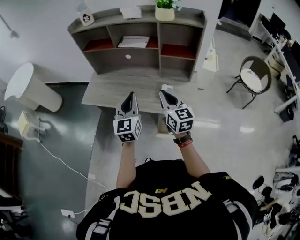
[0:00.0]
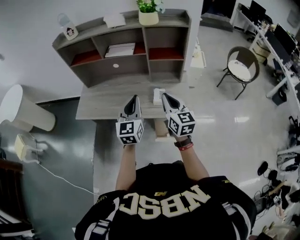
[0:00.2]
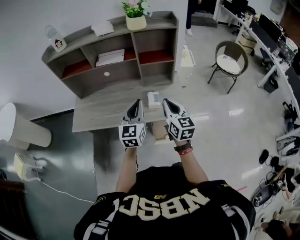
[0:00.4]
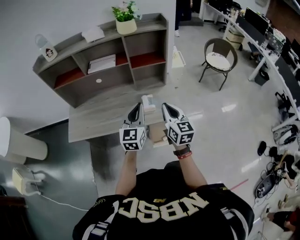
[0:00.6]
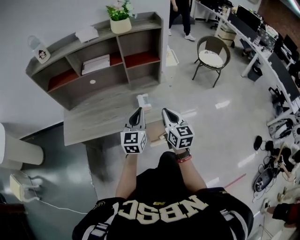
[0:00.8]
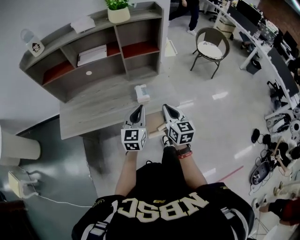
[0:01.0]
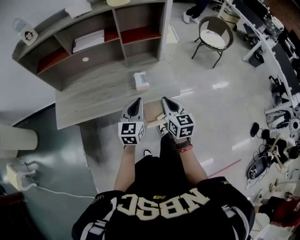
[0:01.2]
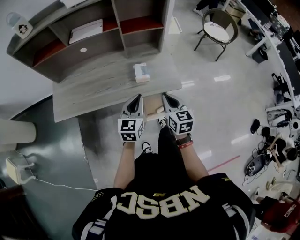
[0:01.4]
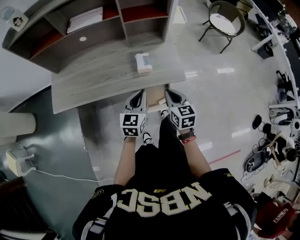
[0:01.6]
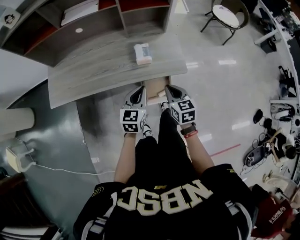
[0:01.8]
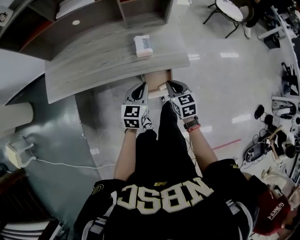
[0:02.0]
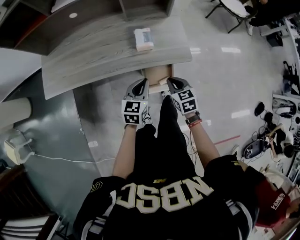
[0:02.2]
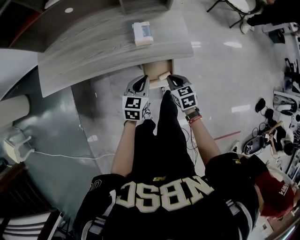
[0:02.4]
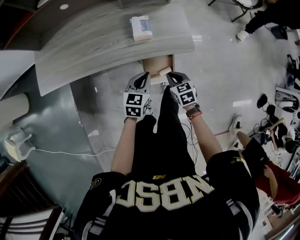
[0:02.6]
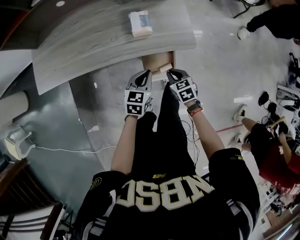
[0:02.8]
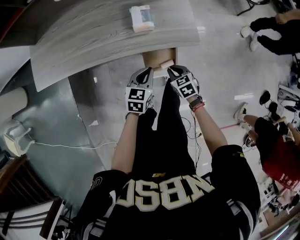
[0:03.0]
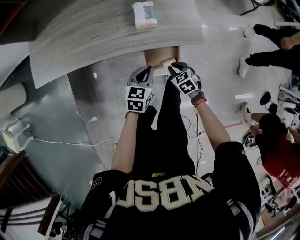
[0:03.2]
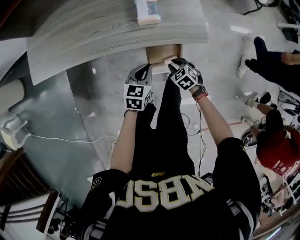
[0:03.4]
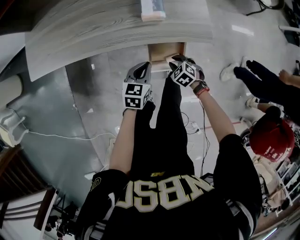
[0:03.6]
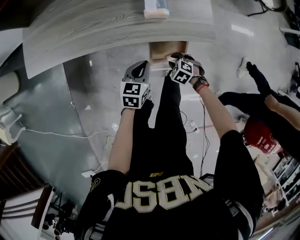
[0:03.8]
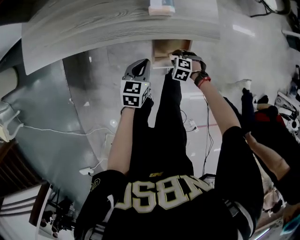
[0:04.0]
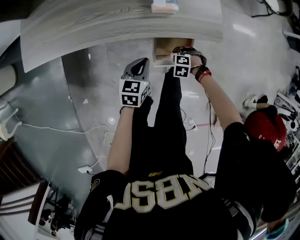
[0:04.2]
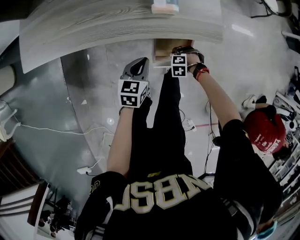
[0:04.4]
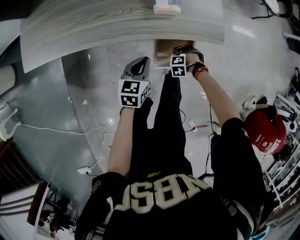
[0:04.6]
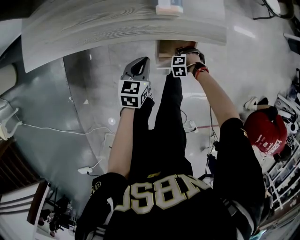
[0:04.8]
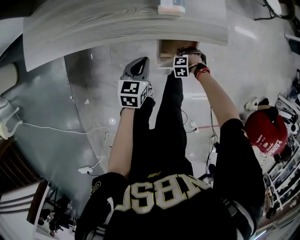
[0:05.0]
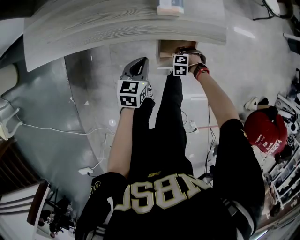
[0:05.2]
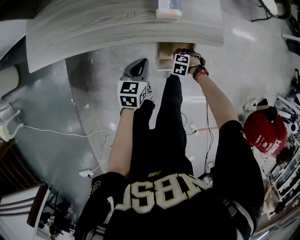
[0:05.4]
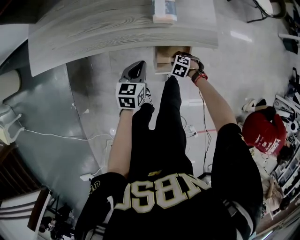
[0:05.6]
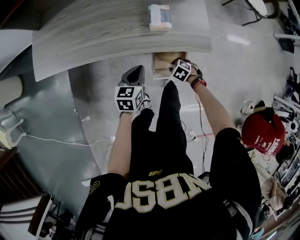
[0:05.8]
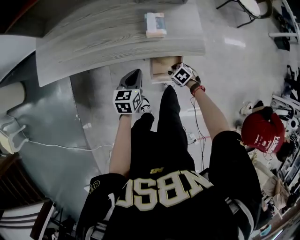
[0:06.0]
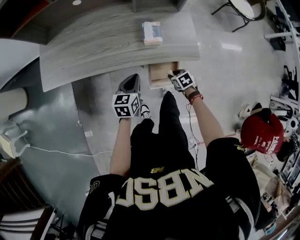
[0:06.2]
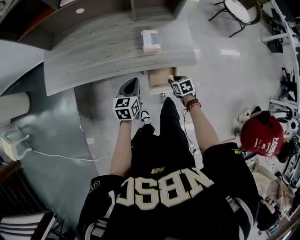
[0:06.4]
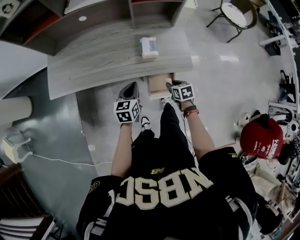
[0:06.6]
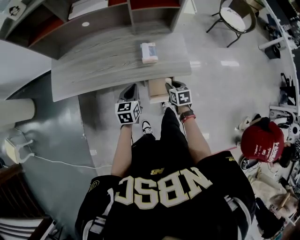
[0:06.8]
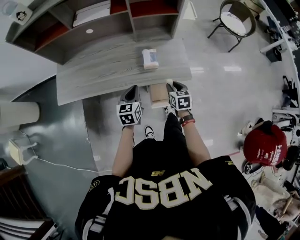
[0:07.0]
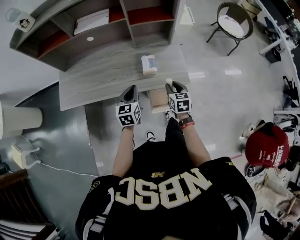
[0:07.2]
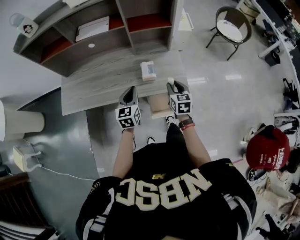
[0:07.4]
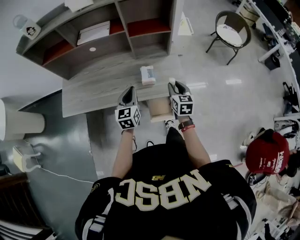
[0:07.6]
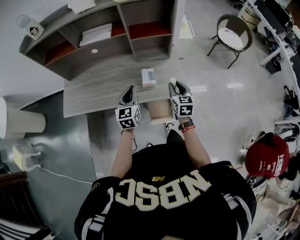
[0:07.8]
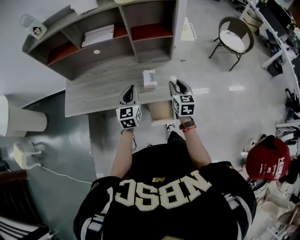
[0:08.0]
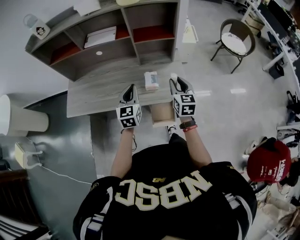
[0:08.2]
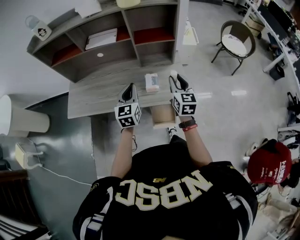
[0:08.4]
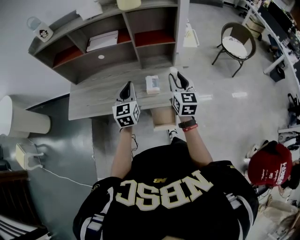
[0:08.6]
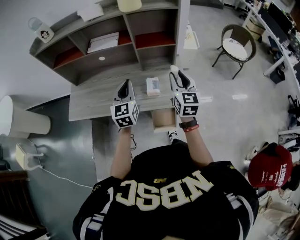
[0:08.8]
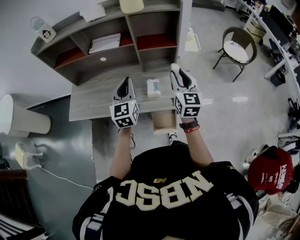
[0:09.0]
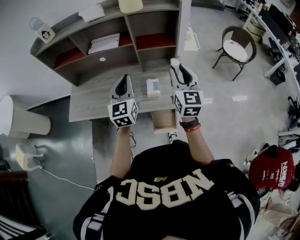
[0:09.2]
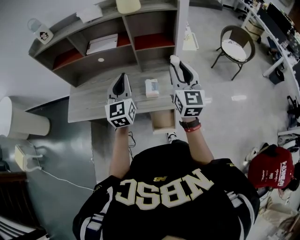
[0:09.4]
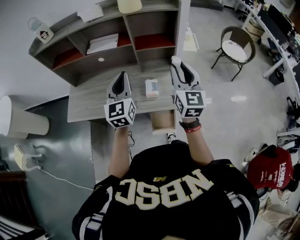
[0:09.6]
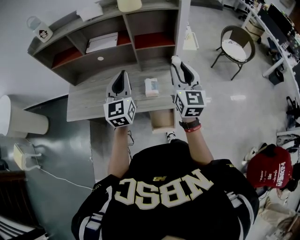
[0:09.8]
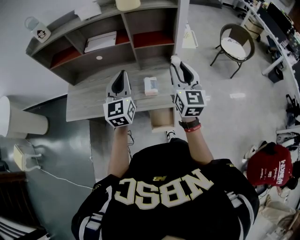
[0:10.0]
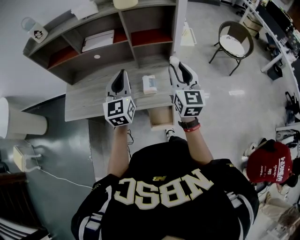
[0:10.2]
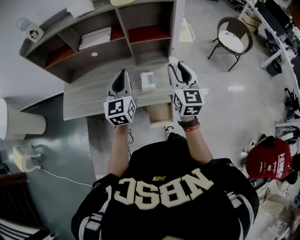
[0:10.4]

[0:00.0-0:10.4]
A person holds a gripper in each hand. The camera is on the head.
0:00.0 to 0:01.4: Both grippers move downward, roughly 15 cm. The left gripper turns by approximately 40 degrees. Meanwhile the right gripper swivels approximately 30 degrees.
0:01.4 to 0:03.0: Both grippers move downward, roughly 25 cm. The right gripper tips its fingers downward by approximately 30 degrees. The left gripper swivels about 20 degrees.
0:03.0 to 0:04.4: The right gripper goes roughly 15 cm downward, rotates around the line of its fingers by about 60 degrees, counterclockwise from behind, and opens; the left gripper moves approximately 10 cm.
0:04.4 to 0:06.0: The grippers both shift upward by roughly 10 cm. The right gripper rolls clockwise, seen from behind, by some 50 degrees.
0:06.0 to 0:07.4: The right gripper is displaced upward by about 30 cm, and tips its fingers upward by roughly 40 degrees. The left gripper shifts some 15 cm upward, and rotates approximately 20 degrees.
0:07.4 to 0:09.0: Both grippers travel together upward, about 20 cm. The right gripper swivels roughly 30 degrees; the left gripper turns by roughly 20 degrees.
0:09.0 to 0:10.4: There are only small adjustments of the grippers.

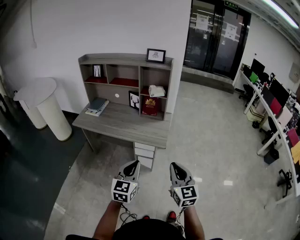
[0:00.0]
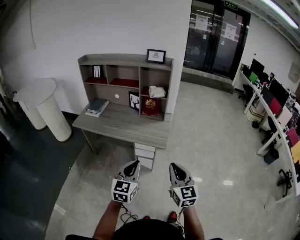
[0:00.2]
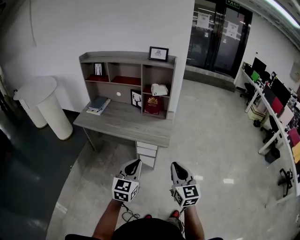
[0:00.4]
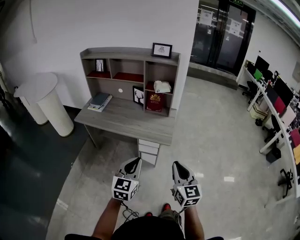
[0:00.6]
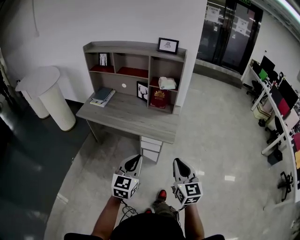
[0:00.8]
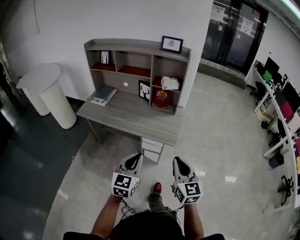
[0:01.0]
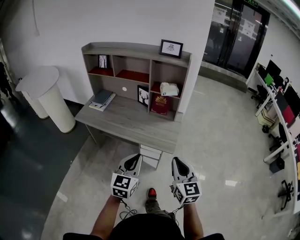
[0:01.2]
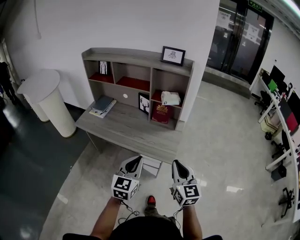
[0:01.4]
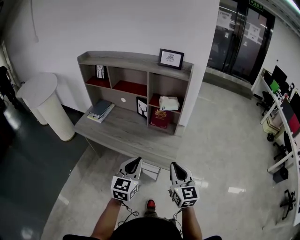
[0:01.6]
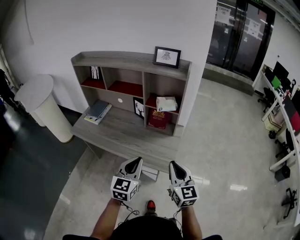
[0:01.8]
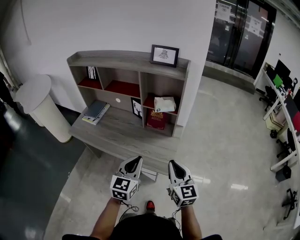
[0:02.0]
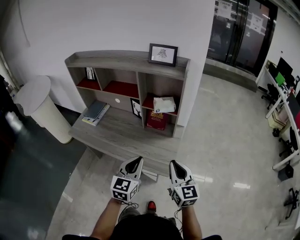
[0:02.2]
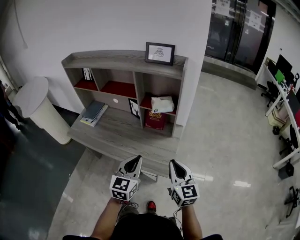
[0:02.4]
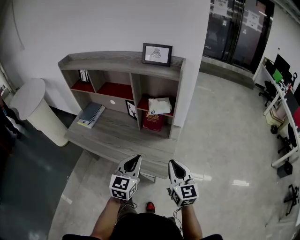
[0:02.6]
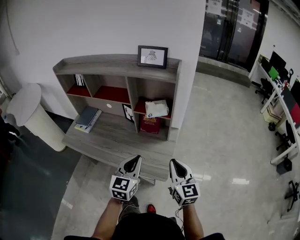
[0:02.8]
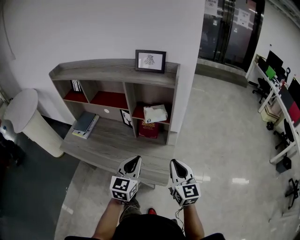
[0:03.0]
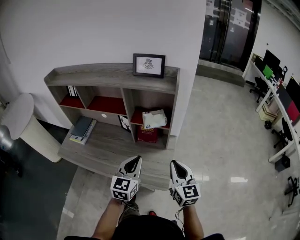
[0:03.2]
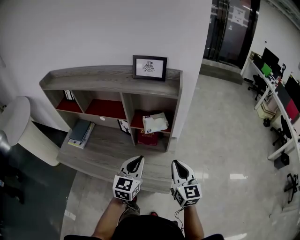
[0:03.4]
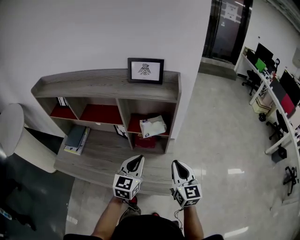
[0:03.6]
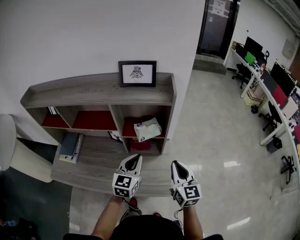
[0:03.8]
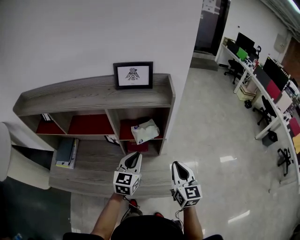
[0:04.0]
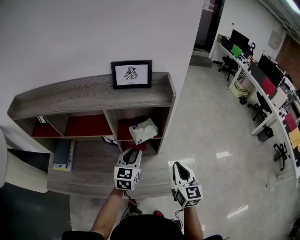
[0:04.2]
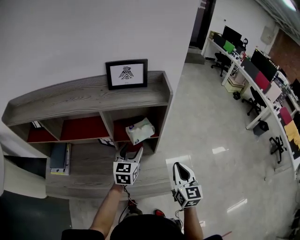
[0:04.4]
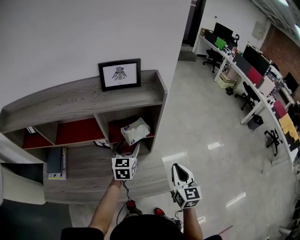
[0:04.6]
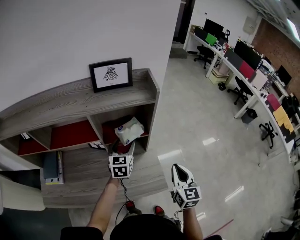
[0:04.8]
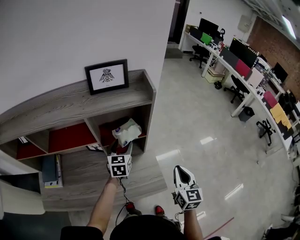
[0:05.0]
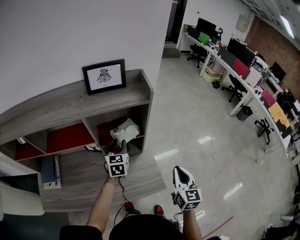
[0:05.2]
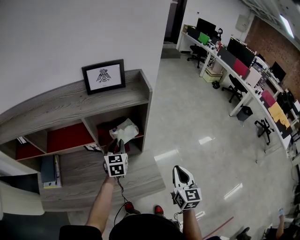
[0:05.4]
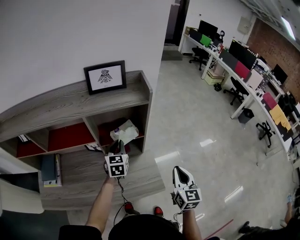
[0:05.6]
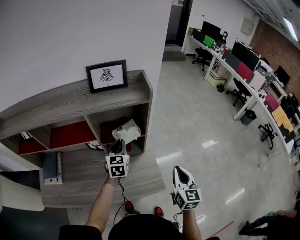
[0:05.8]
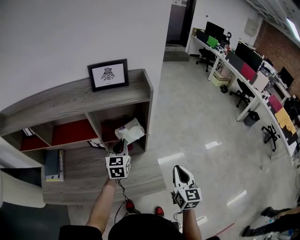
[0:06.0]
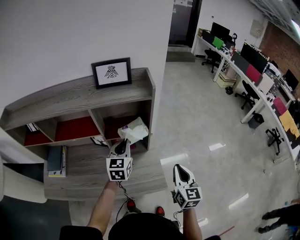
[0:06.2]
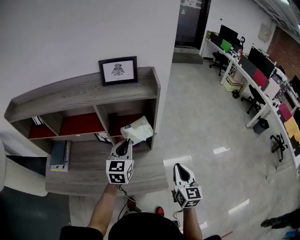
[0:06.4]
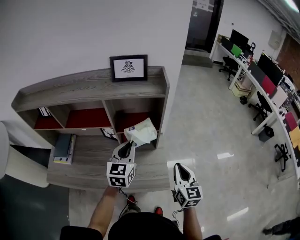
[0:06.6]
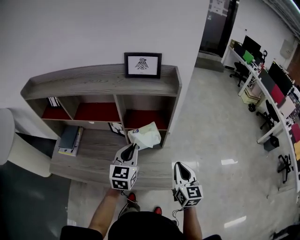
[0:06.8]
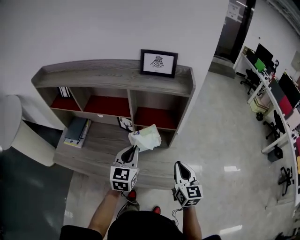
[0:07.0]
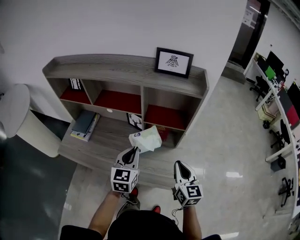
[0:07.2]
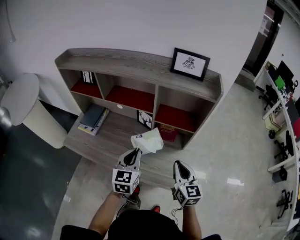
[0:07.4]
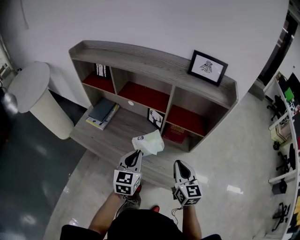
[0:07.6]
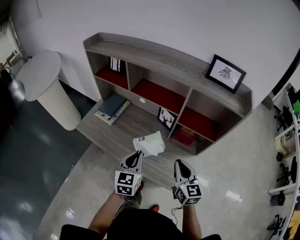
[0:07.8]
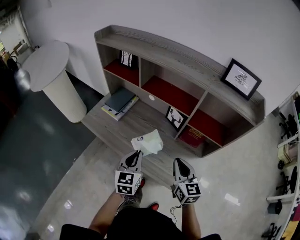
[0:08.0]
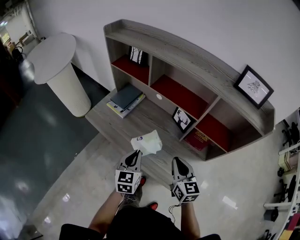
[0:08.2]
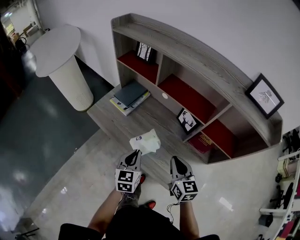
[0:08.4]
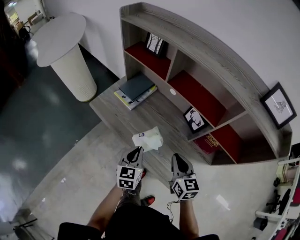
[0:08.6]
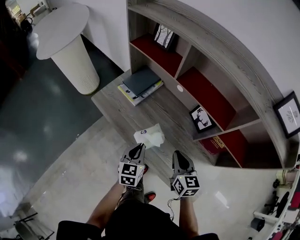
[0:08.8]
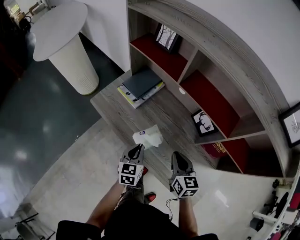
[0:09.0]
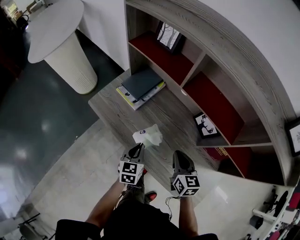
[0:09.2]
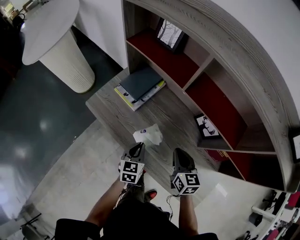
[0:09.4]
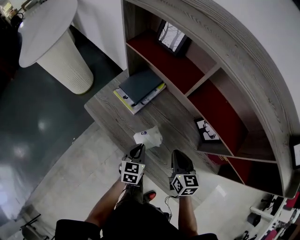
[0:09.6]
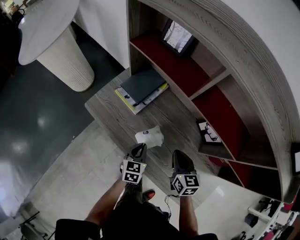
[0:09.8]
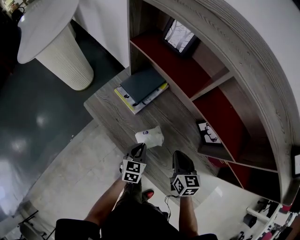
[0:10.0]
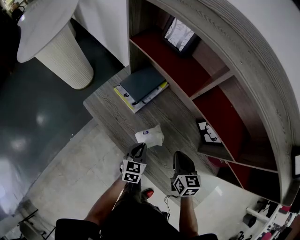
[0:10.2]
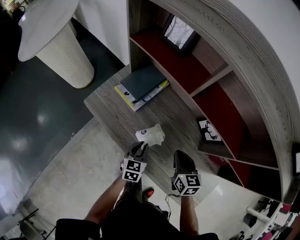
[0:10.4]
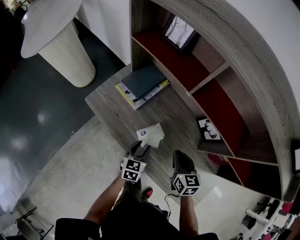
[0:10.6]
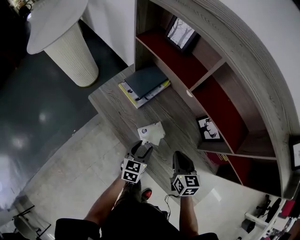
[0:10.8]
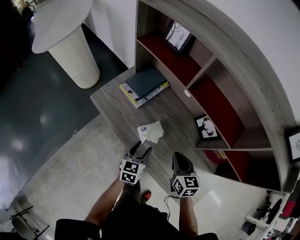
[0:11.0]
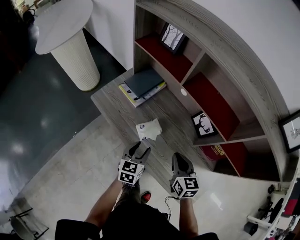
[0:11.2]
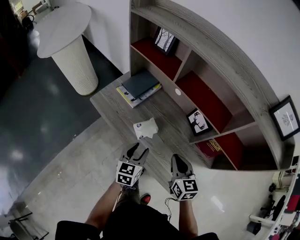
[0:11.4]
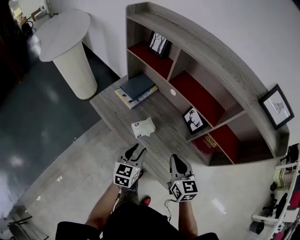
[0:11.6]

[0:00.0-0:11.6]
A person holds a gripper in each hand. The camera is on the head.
0:00.0 to 0:01.4: Both grippers travel together forward, approximately 20 cm.
0:01.4 to 0:02.8: The right gripper moves forward, approximately 15 cm; the left gripper moves forward and to the right, roughly 20 cm.
0:02.8 to 0:04.4: The left gripper shifts some 25 cm forward, and opens; the right gripper heads forward, covering about 10 cm, and turns by approximately 30 degrees.
0:04.4 to 0:05.8: The right gripper goes approximately 5 cm to the right; the left gripper closes.
0:05.8 to 0:07.2: The right gripper travels to the left by about 10 cm, and rotates about 30 degrees. Meanwhile the left gripper moves backward and to the left, roughly 20 cm.
0:07.2 to 0:08.8: The left gripper changes place by some 30 cm, and changes its angle by about 30 degrees, while the right gripper moves some 30 cm, and rotates some 30 degrees.
0:08.8 to 0:10.2: The right gripper heads forward and downward, covering about 10 cm. Meanwhile the left gripper heads downward and forward, covering approximately 15 cm.
0:10.2 to 0:11.6: The left gripper heads upward and backward, covering approximately 20 cm, and opens; the right gripper moves backward and upward, some 20 cm.

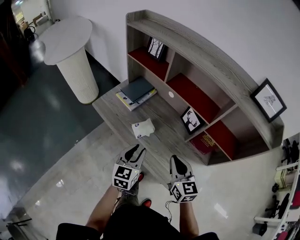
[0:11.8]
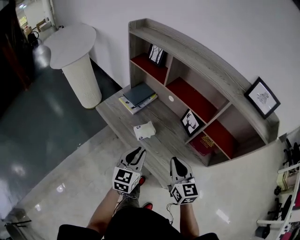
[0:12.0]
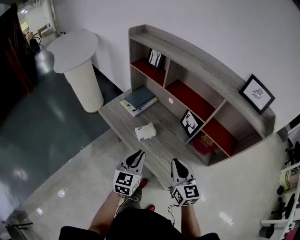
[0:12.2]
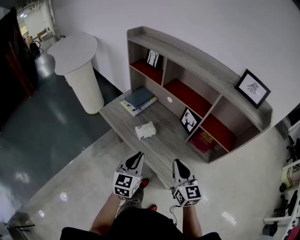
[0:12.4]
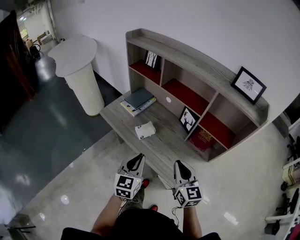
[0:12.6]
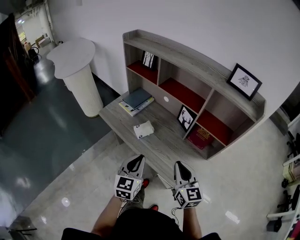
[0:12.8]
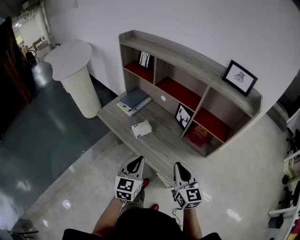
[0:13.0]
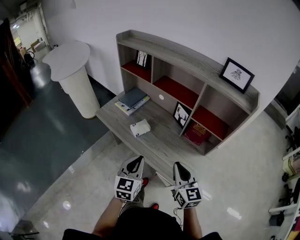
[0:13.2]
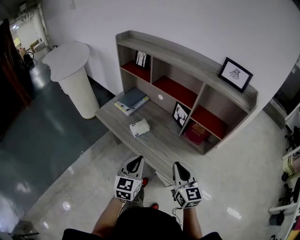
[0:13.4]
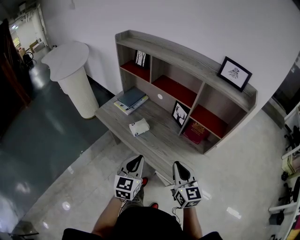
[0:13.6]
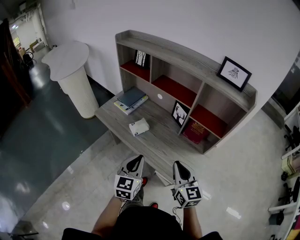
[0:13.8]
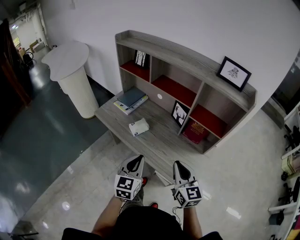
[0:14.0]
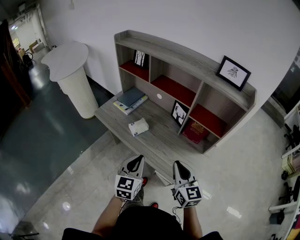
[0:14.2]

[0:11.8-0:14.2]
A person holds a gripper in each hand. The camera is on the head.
0:11.8 to 0:13.0: The left gripper moves backward and upward, about 15 cm, and closes. The right gripper shifts about 15 cm backward.
0:13.0 to 0:14.2: The grippers stay close to where they were, moving slightly.
